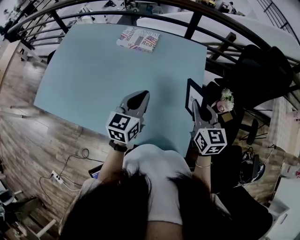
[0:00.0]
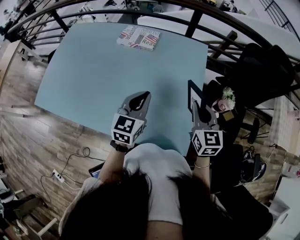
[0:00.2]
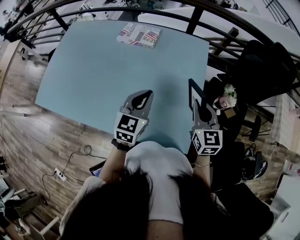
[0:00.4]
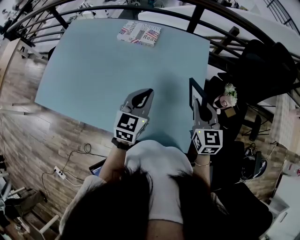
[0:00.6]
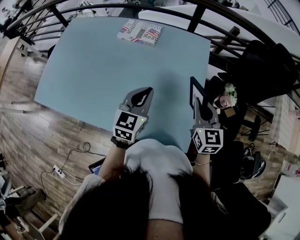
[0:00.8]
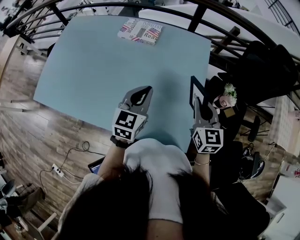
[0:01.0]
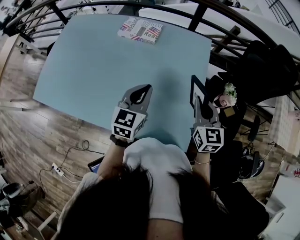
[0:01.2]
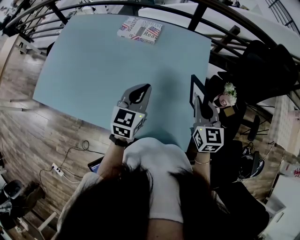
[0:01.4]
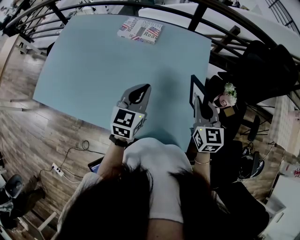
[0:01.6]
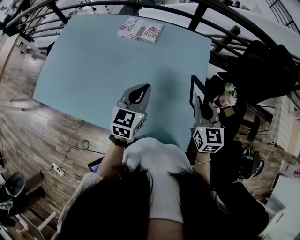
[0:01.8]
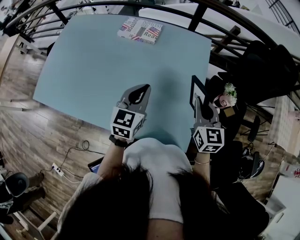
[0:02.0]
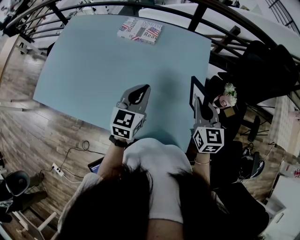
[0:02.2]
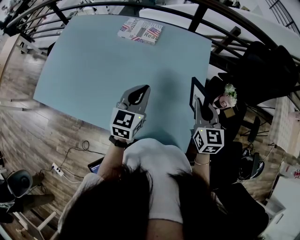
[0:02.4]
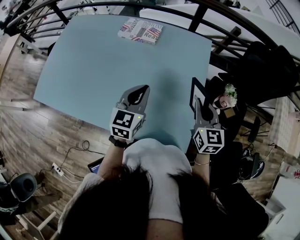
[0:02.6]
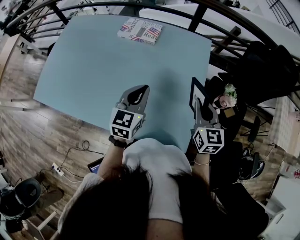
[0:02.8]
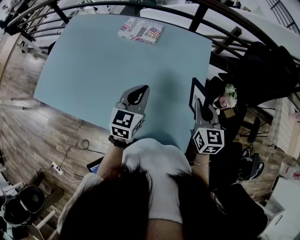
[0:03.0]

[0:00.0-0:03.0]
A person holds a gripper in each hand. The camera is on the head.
0:00.0 to 0:01.6: There are only small adjustments of the grippers.
0:01.6 to 0:03.0: Both grippers stay about where they are.

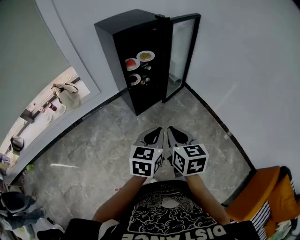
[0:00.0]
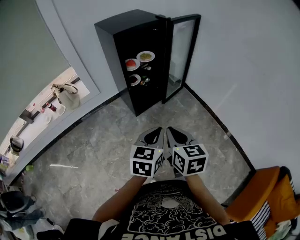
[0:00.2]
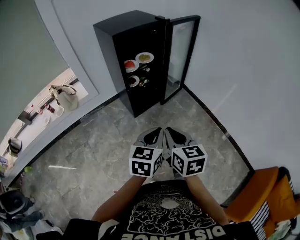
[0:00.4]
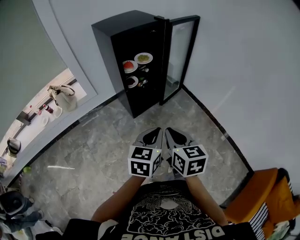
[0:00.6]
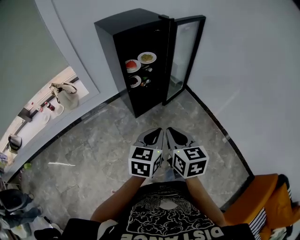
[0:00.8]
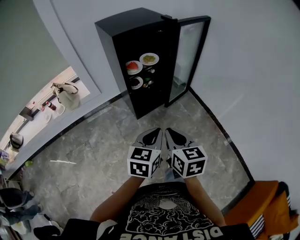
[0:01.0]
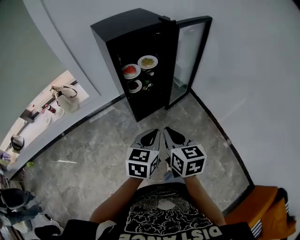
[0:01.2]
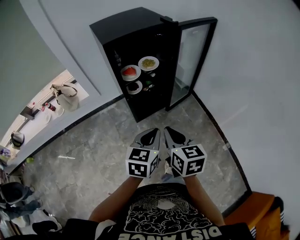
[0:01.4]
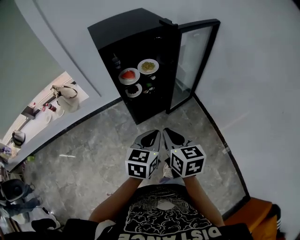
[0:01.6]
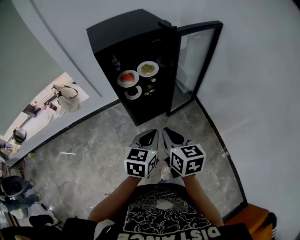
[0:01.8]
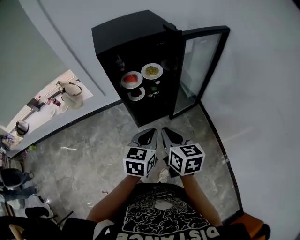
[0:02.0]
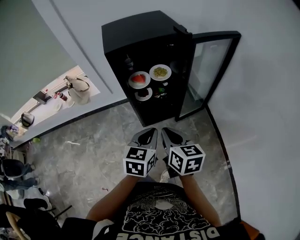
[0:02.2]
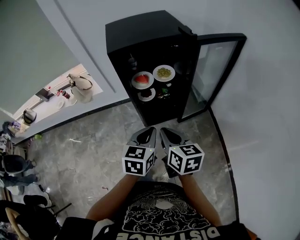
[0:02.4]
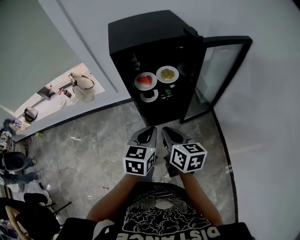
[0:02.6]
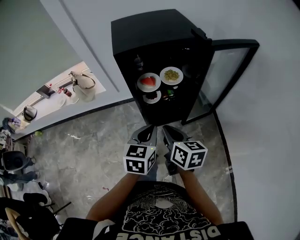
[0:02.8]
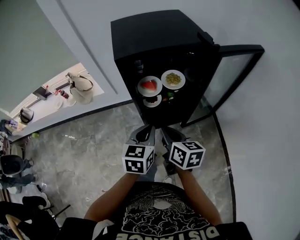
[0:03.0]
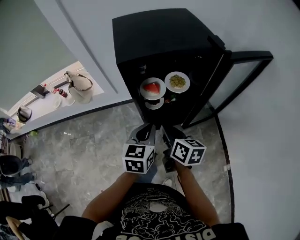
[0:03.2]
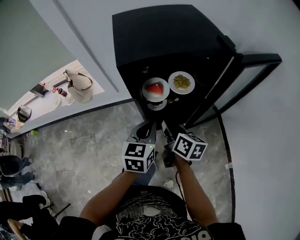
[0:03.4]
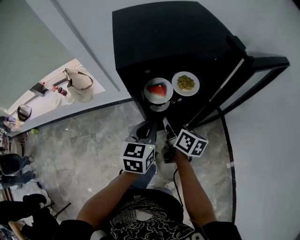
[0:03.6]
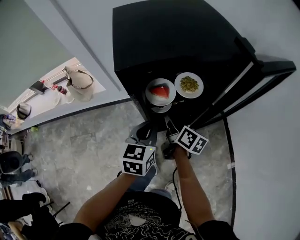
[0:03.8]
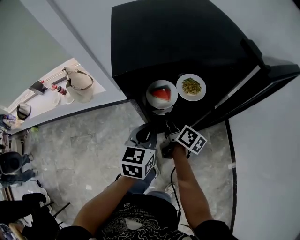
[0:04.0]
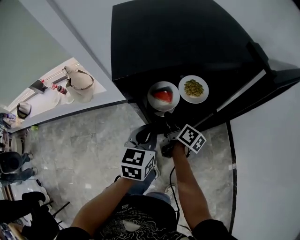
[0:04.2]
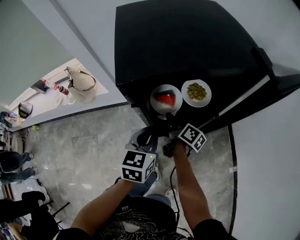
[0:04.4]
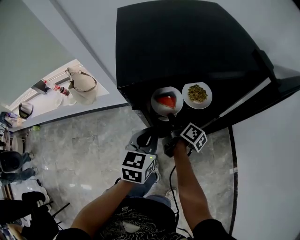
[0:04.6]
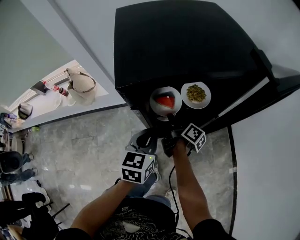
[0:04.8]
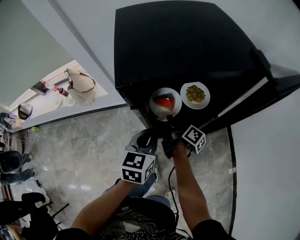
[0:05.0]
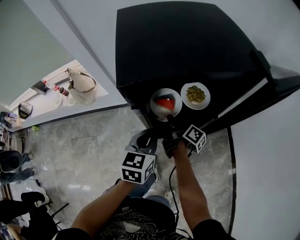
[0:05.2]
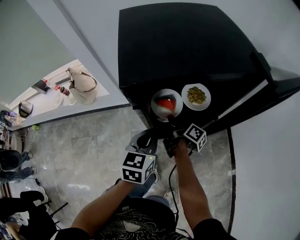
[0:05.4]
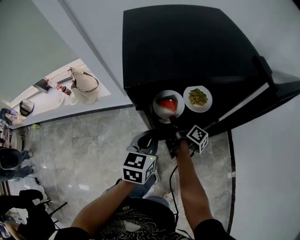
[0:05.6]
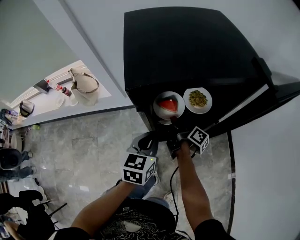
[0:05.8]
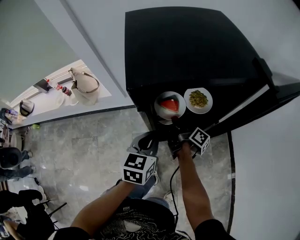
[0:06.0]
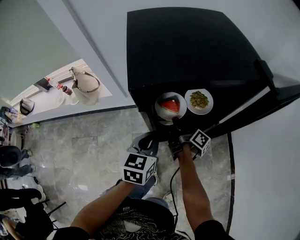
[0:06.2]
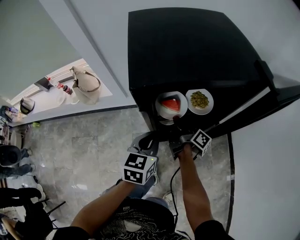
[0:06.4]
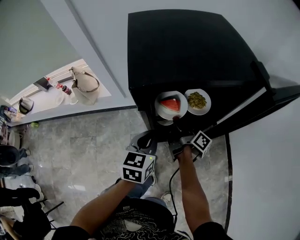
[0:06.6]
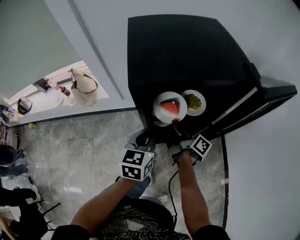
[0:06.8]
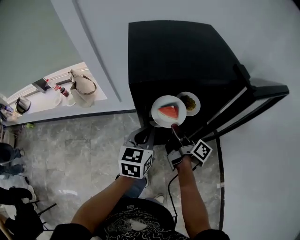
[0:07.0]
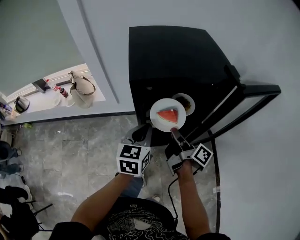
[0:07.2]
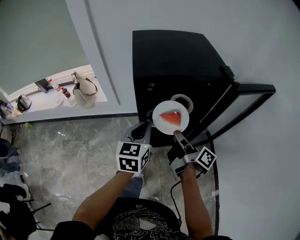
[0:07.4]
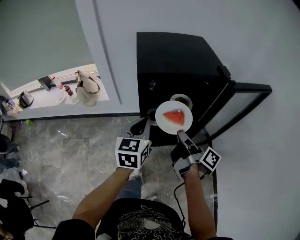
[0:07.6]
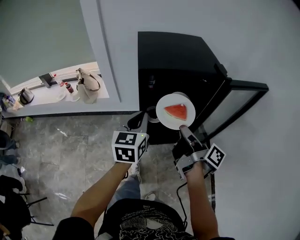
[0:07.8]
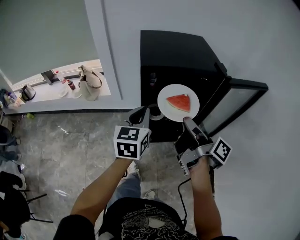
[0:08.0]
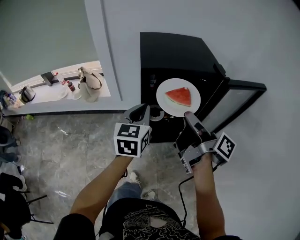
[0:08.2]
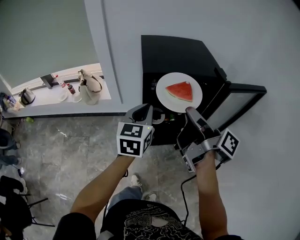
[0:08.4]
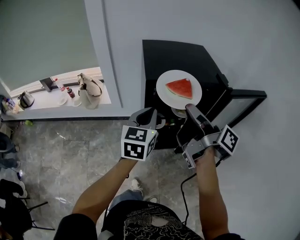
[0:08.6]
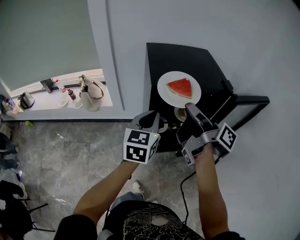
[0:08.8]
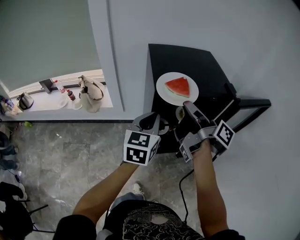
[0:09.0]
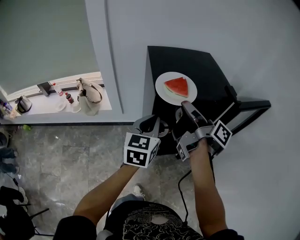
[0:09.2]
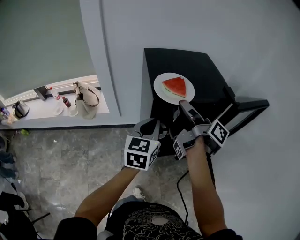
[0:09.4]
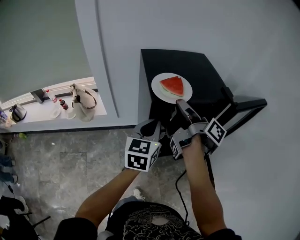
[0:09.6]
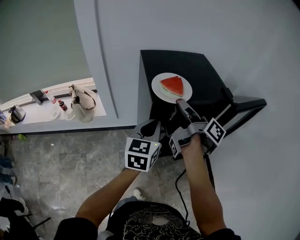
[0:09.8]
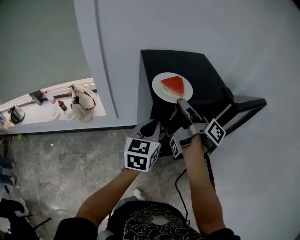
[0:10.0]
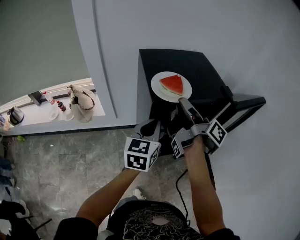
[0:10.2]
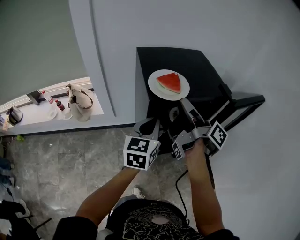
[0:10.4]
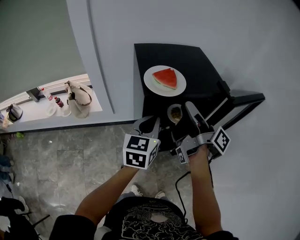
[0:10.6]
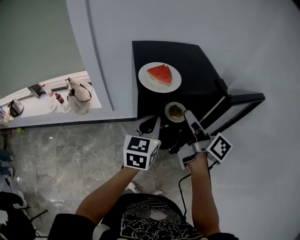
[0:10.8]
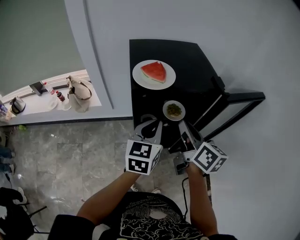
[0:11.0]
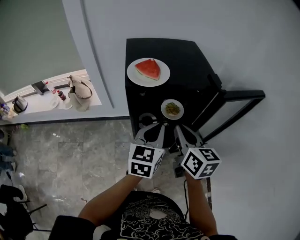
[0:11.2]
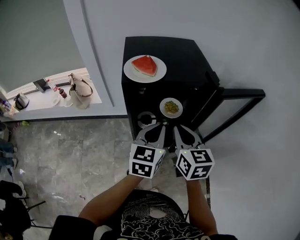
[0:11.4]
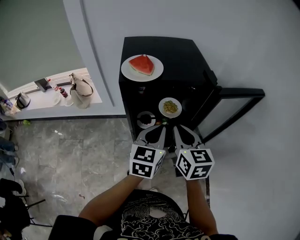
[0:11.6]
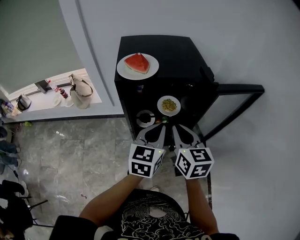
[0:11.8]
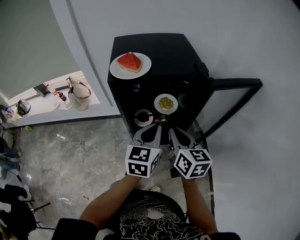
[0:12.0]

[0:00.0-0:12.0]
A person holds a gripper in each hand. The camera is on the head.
0:00.0 to 0:01.6: Both grippers travel together forward, roughly 20 cm.
0:01.6 to 0:03.0: The grippers both shift forward by about 15 cm. The right gripper rotates about 20 degrees.
0:03.0 to 0:04.4: The left gripper is displaced forward and downward by about 15 cm. The right gripper goes about 30 cm forward and downward, and rotates roughly 40 degrees.
0:04.4 to 0:06.0: There are only small adjustments of the grippers.
0:06.0 to 0:07.6: The left gripper heads upward and backward, covering about 15 cm; the right gripper moves upward and backward, approximately 25 cm.
0:07.6 to 0:09.0: The left gripper goes some 5 cm upward; the right gripper moves upward and forward, approximately 20 cm.
0:09.0 to 0:10.4: There are only small adjustments of the grippers.
0:10.4 to 0:12.0: The right gripper heads to the right, backward and downward, covering approximately 20 cm, and rotates around the line of its fingers by roughly 60 degrees, counterclockwise from behind; the left gripper goes roughly 20 cm to the right and backward.

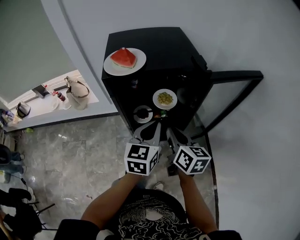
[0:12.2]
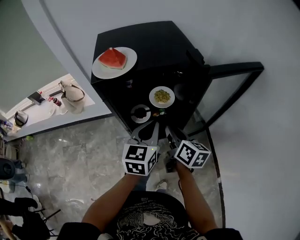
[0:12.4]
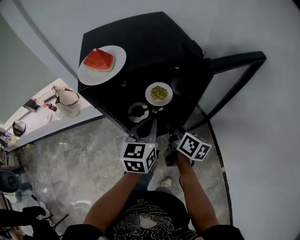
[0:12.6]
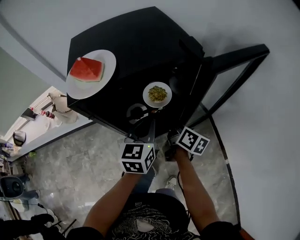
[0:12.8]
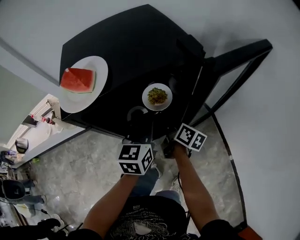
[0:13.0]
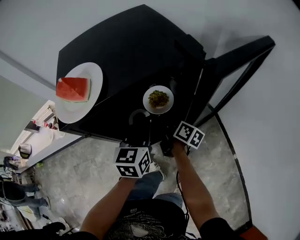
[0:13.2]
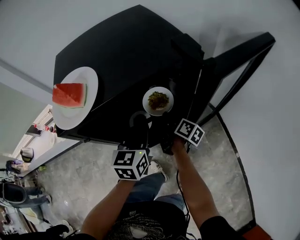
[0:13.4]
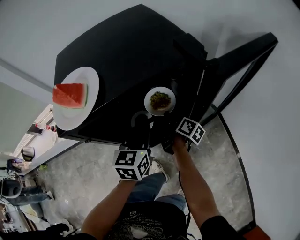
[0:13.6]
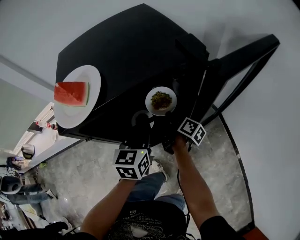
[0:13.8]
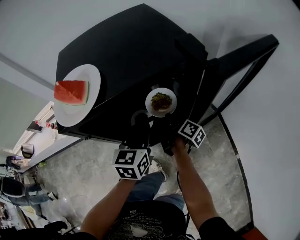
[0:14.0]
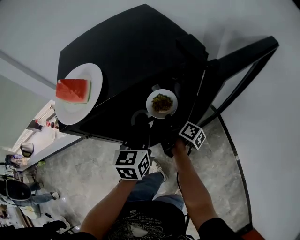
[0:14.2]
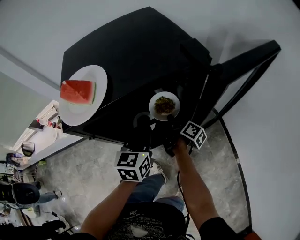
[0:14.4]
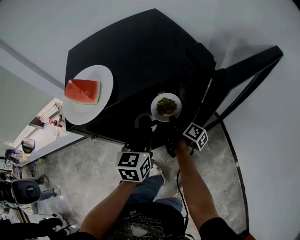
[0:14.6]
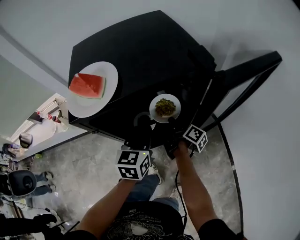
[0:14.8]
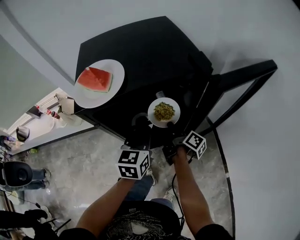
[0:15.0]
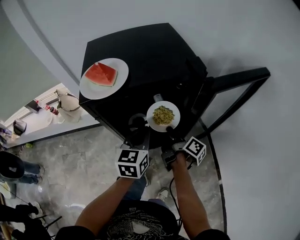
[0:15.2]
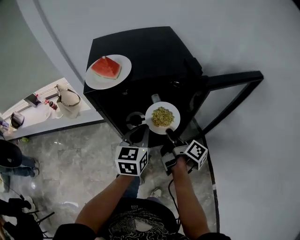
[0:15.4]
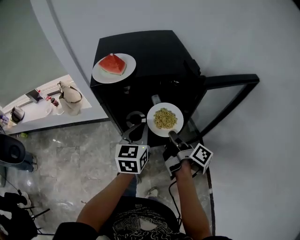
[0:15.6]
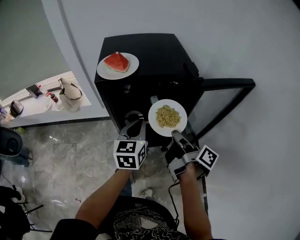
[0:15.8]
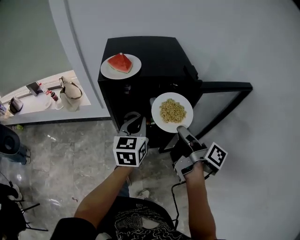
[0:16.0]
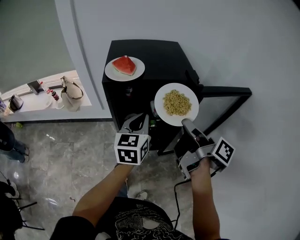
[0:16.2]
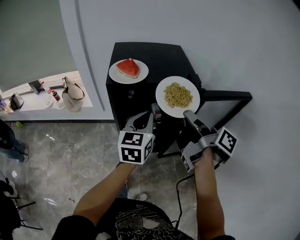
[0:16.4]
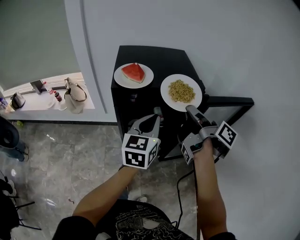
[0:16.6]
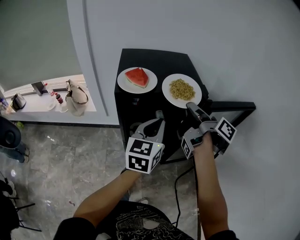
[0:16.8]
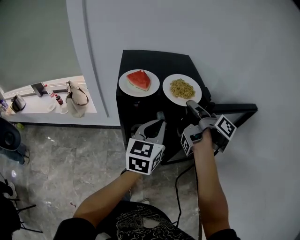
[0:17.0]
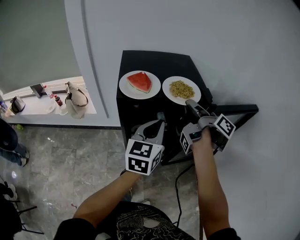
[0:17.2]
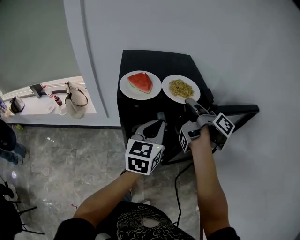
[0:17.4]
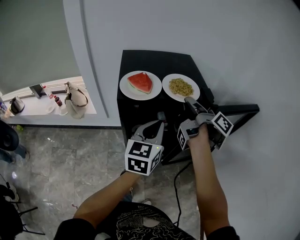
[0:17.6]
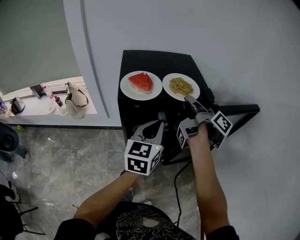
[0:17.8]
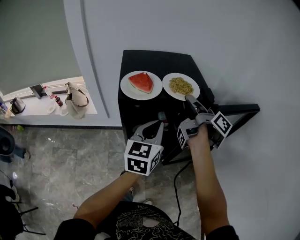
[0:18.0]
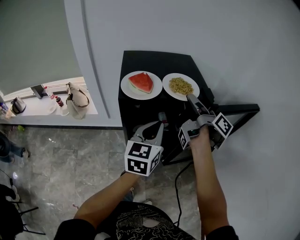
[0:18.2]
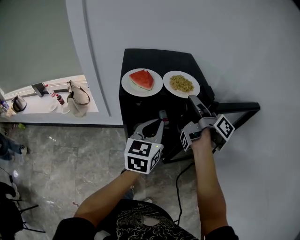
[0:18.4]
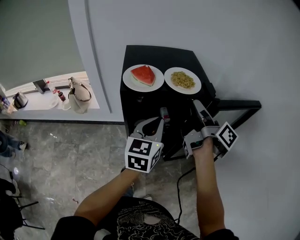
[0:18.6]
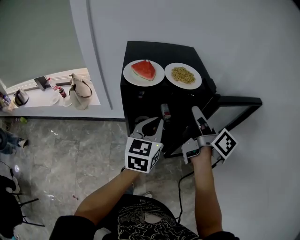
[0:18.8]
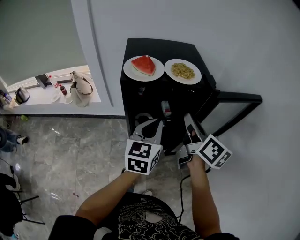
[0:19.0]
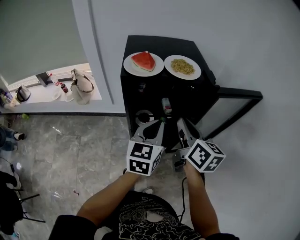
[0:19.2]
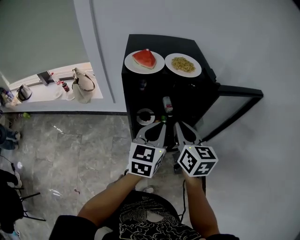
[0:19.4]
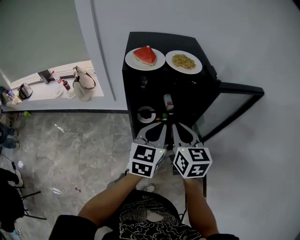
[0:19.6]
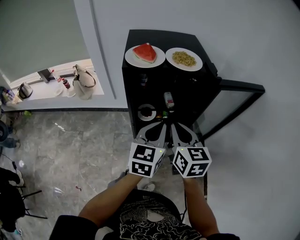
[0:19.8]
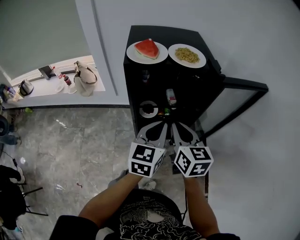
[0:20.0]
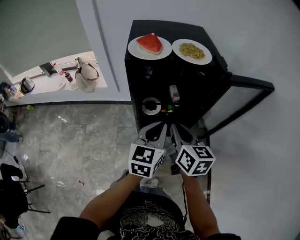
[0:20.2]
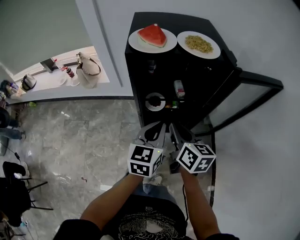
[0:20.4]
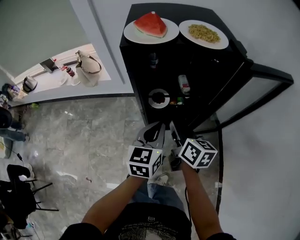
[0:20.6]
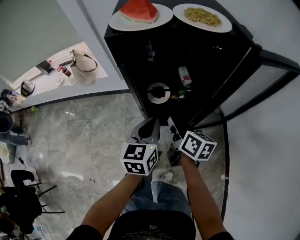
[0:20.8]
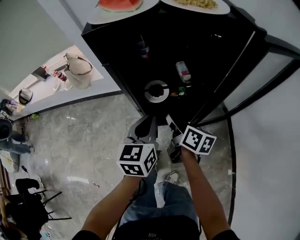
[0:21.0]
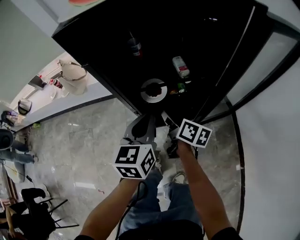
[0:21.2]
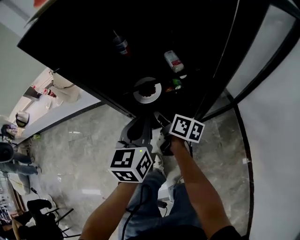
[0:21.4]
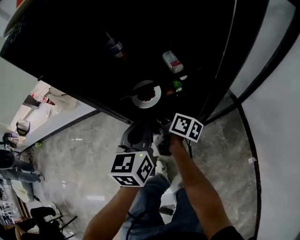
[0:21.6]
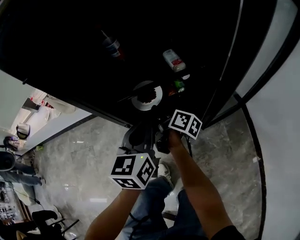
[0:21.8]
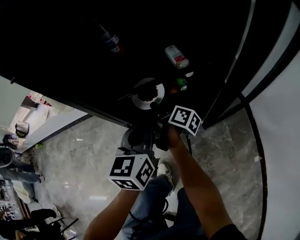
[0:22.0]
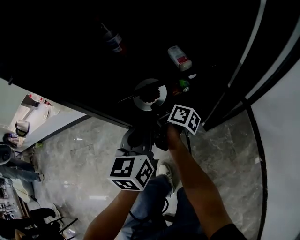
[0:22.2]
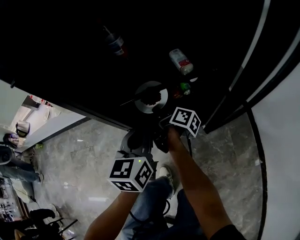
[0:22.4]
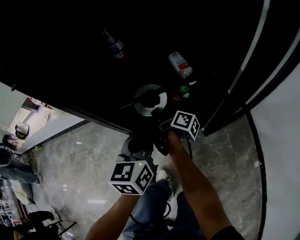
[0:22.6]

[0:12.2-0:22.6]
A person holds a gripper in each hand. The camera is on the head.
0:12.2 to 0:13.6: The left gripper goes approximately 15 cm forward and downward; the right gripper is displaced downward and forward by roughly 30 cm, and rotates around the line of its fingers by about 50 degrees, clockwise from behind.
0:13.6 to 0:15.2: The left gripper moves approximately 5 cm; the right gripper travels upward and backward by some 10 cm.
0:15.2 to 0:16.6: The right gripper is displaced upward by approximately 30 cm; the left gripper heads upward, covering approximately 15 cm.
0:16.6 to 0:18.2: The right gripper shifts about 10 cm forward.
0:18.2 to 0:19.6: The left gripper moves backward, approximately 10 cm. The right gripper shifts approximately 20 cm backward and downward, and twists roughly 80 degrees counterclockwise, seen from behind.
0:19.6 to 0:21.2: The right gripper goes approximately 35 cm downward, and rolls clockwise, seen from behind, by approximately 50 degrees. The left gripper is displaced downward by approximately 20 cm.
0:21.2 to 0:22.6: The two grippers go approximately 20 cm downward and forward. The right gripper rotates roughly 30 degrees.
